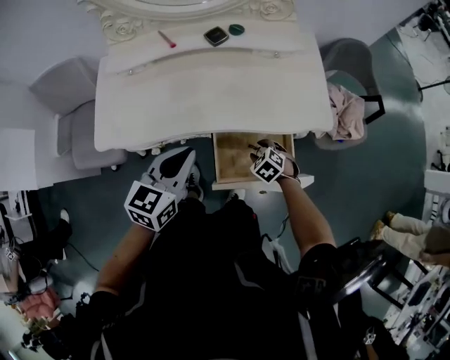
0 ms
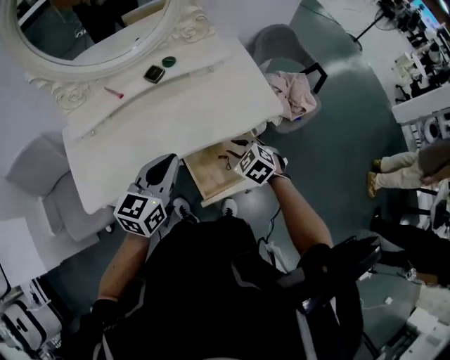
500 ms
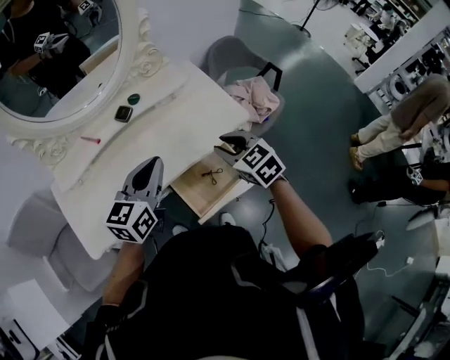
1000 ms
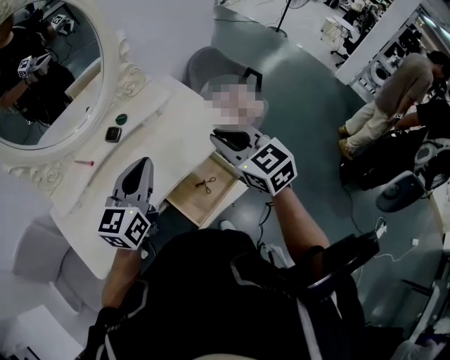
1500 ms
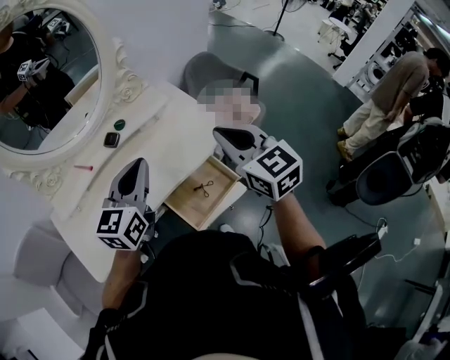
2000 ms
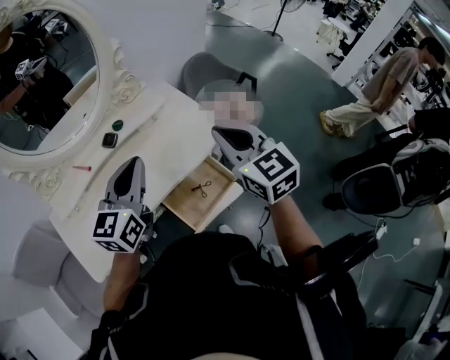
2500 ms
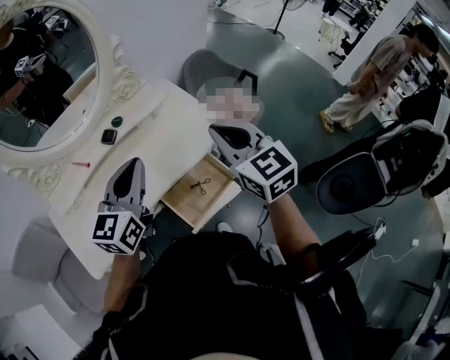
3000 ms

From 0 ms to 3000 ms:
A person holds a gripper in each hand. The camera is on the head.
From 0 ms to 1500 ms: The left gripper is displaced upward by some 15 cm, and turns by some 30 degrees. Meanwhile the right gripper heads upward, covering about 40 cm, tips its fingers upward by about 50 degrees, and closes its fingers.
From 1500 ms to 3000 ms: The right gripper shifts by some 5 cm.

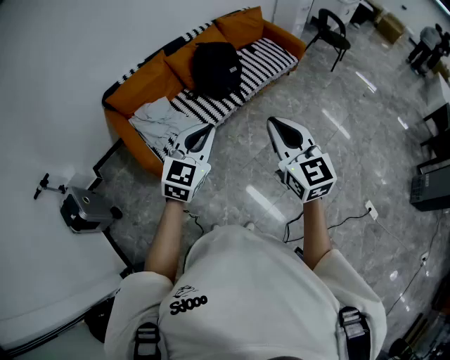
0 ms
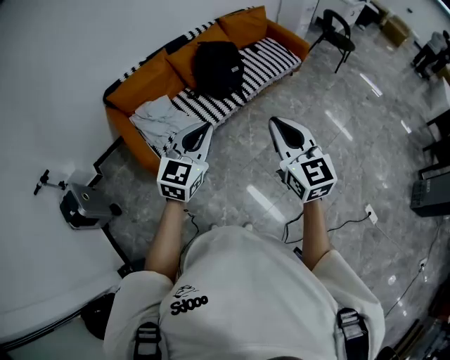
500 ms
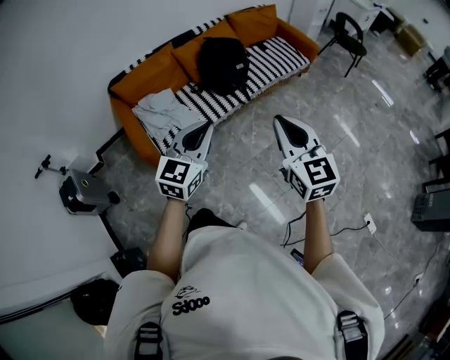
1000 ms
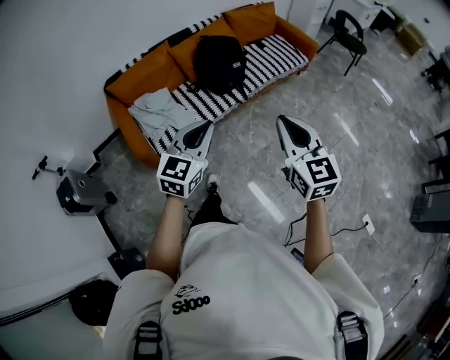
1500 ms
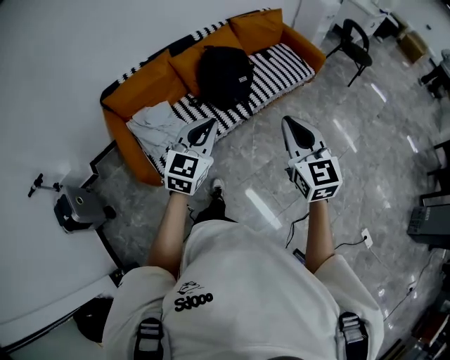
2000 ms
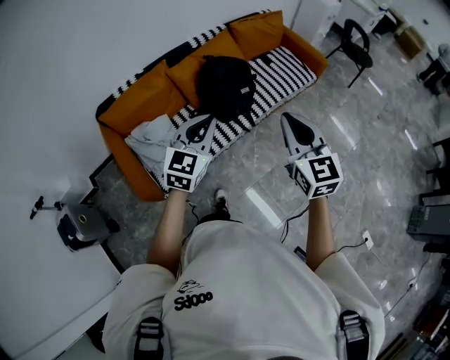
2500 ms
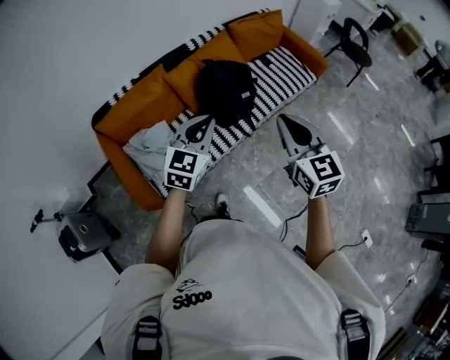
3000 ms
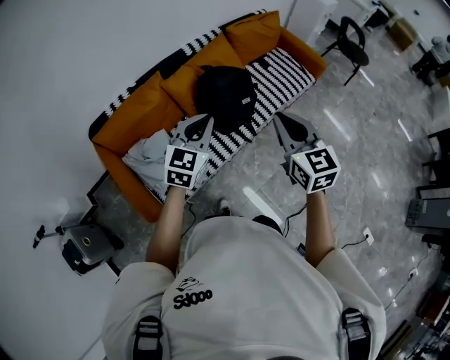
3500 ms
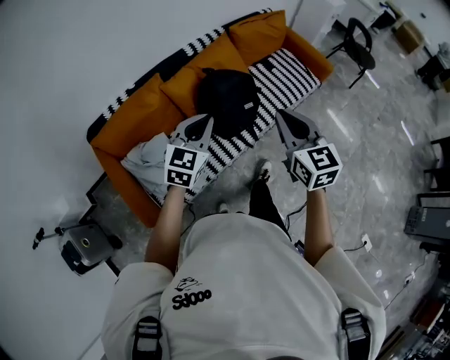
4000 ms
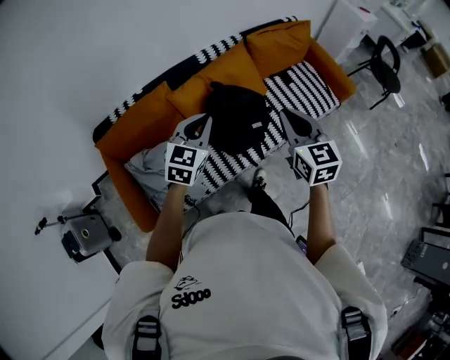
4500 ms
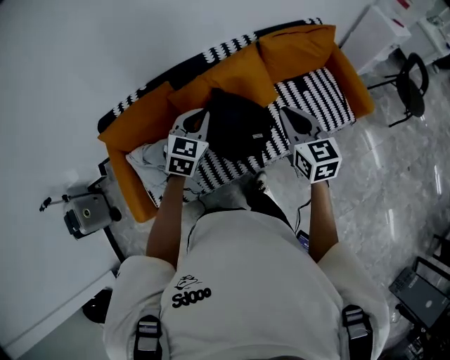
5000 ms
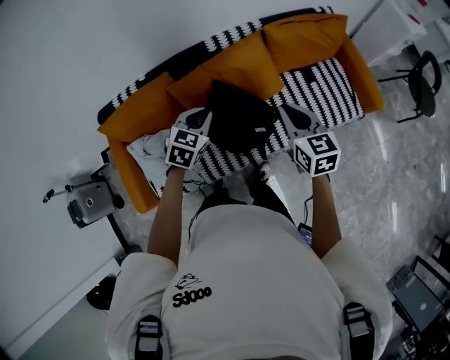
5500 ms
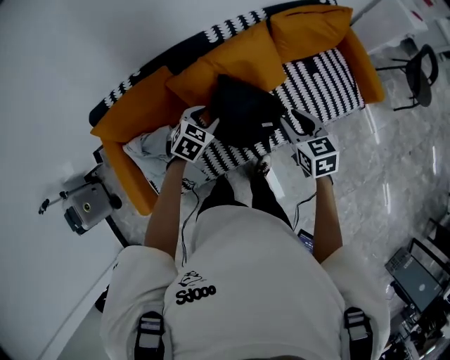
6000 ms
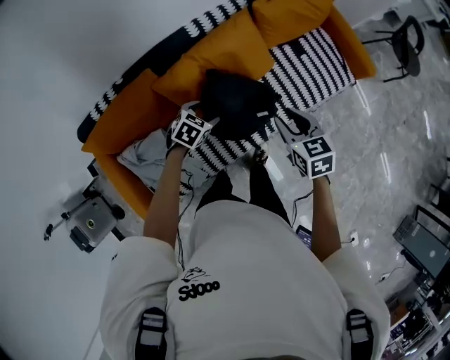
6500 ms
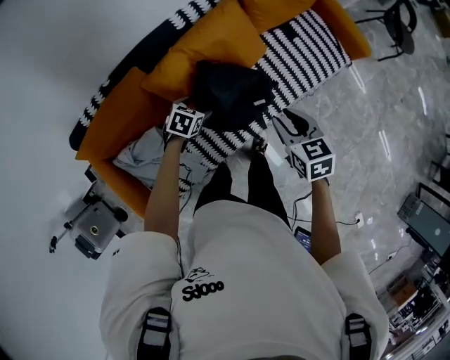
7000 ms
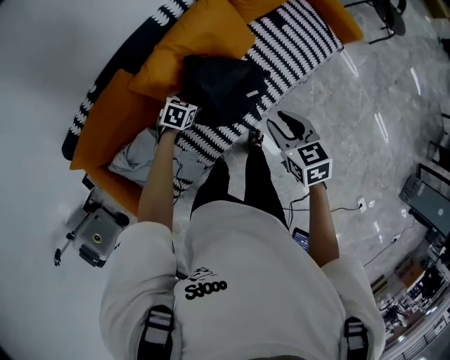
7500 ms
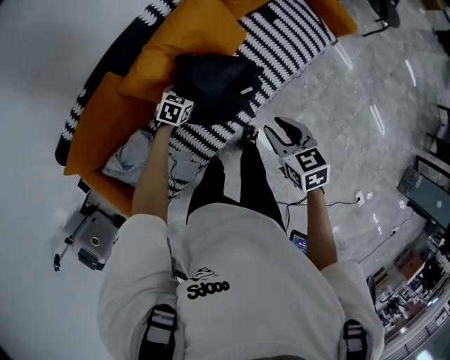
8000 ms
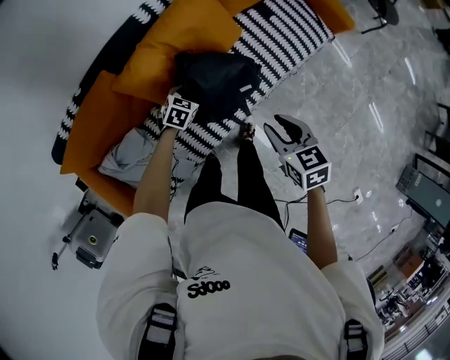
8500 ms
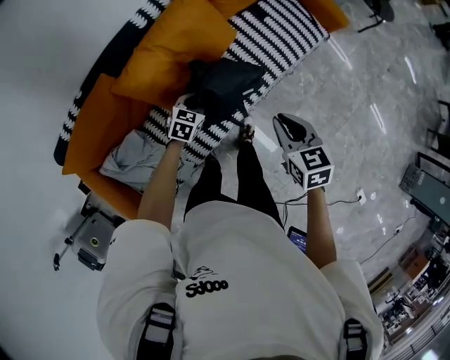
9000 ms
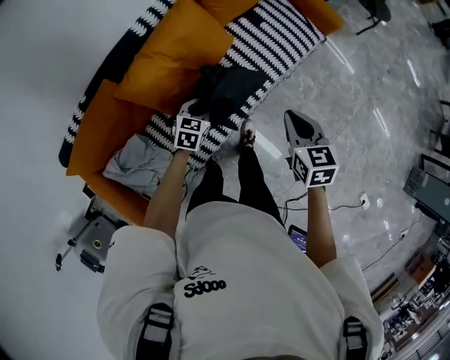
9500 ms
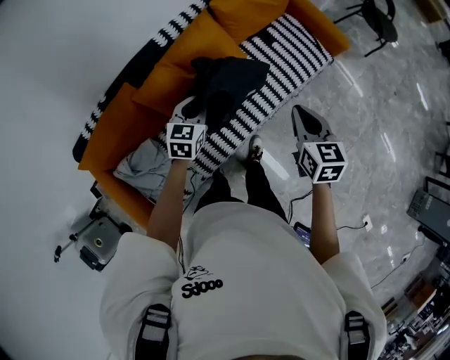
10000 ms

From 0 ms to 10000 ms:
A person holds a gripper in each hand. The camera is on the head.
From 0 ms to 2000 ms: The grippers both shift forward by approximately 20 cm.
From 2000 ms to 4000 ms: The grippers both shift forward by some 35 cm.
From 4000 ms to 6000 ms: The grippers both shift forward and downward by some 40 cm. The left gripper angles its fingers downward, by about 40 degrees, and opens. Meanwhile the right gripper swivels about 30 degrees, and opens.
From 6000 ms to 8000 ms: The right gripper goes roughly 15 cm backward and downward. The left gripper goes roughly 20 cm downward, and opens.
From 8000 ms to 10000 ms: The left gripper goes roughly 25 cm upward, rotates approximately 30 degrees, and closes; the right gripper travels upward and to the right by approximately 15 cm, rotates about 20 degrees, and closes.

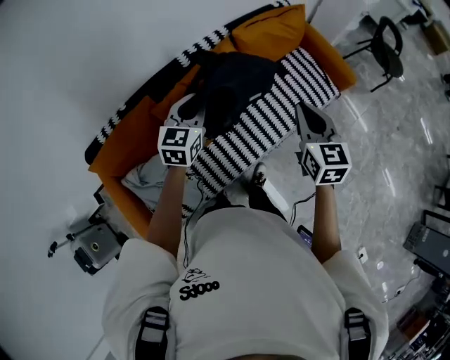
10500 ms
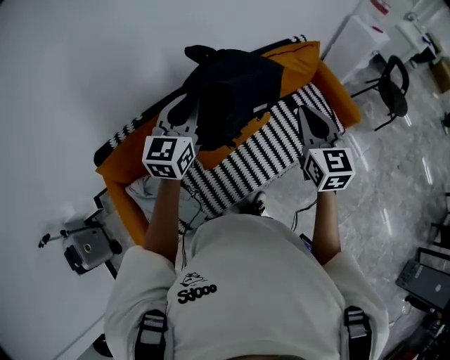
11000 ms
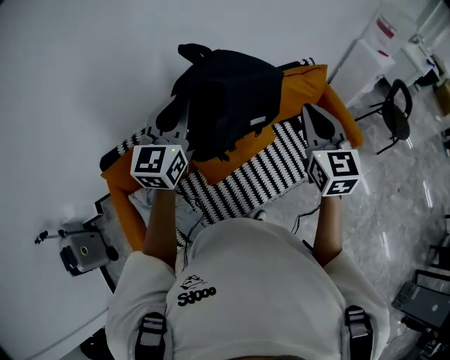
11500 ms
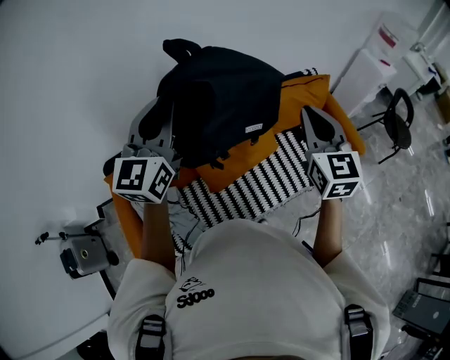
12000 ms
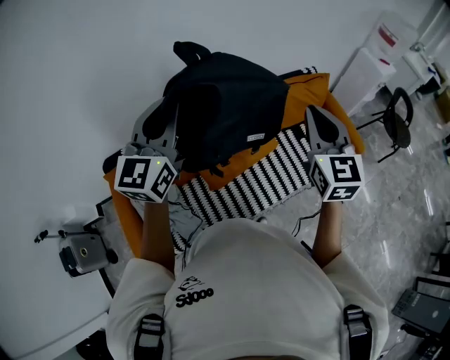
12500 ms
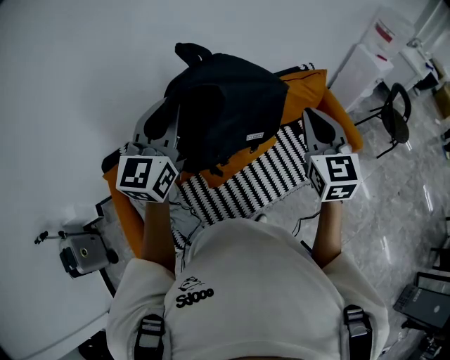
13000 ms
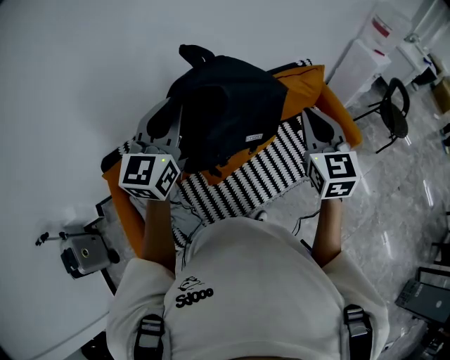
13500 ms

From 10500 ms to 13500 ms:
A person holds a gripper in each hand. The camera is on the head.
From 10500 ms to 12000 ms: The right gripper moves upward and to the left, some 20 cm, and swivels approximately 20 degrees, while the left gripper shifts about 30 cm upward and to the left, and rotates approximately 30 degrees.
From 12000 ms to 13500 ms: The grippers make only small movements.

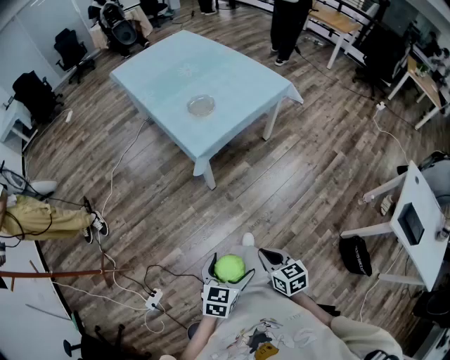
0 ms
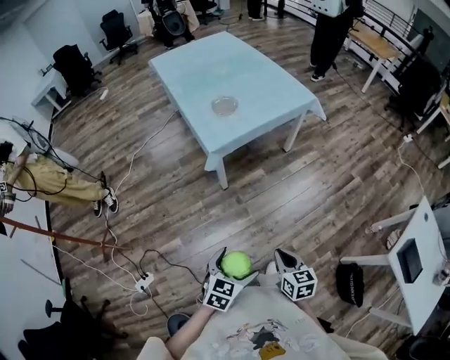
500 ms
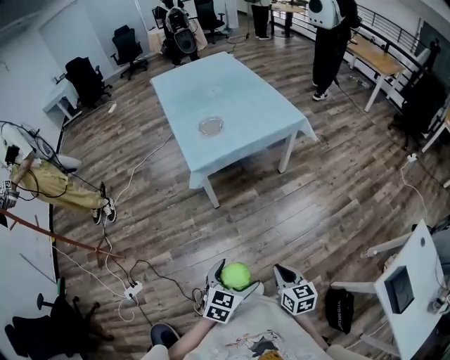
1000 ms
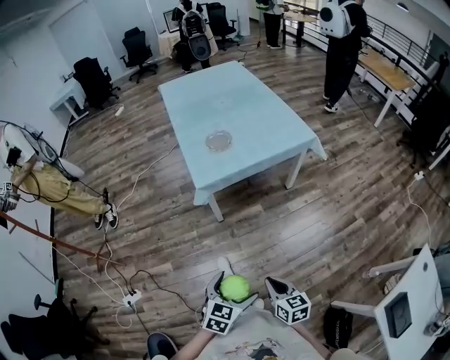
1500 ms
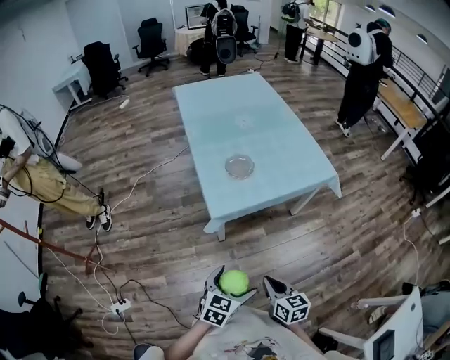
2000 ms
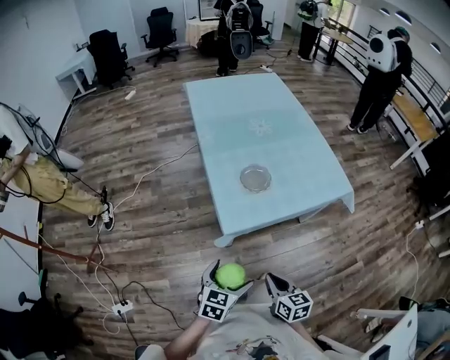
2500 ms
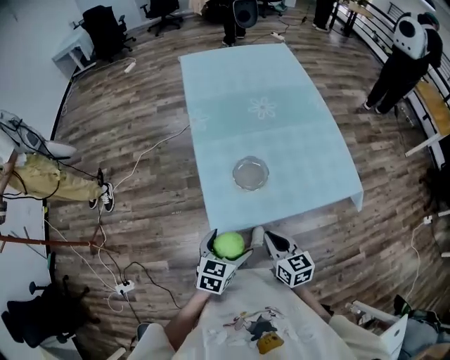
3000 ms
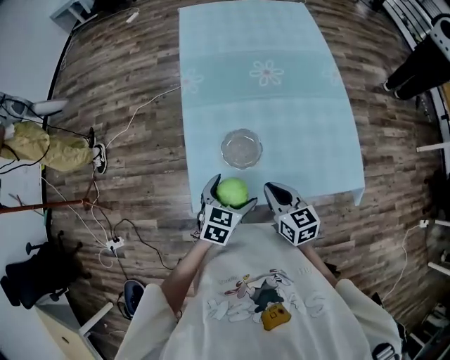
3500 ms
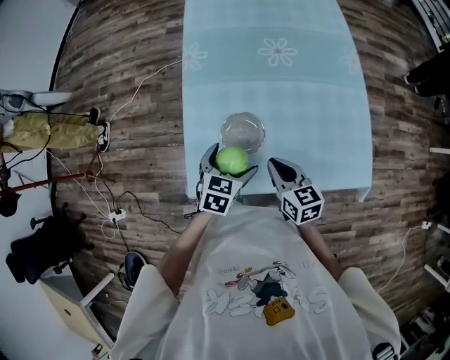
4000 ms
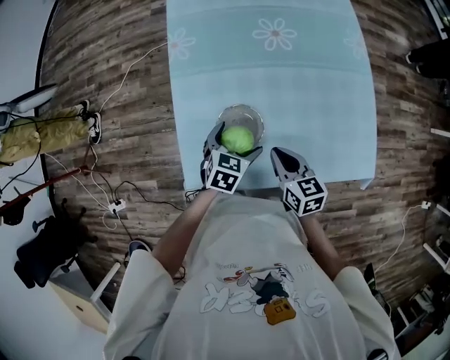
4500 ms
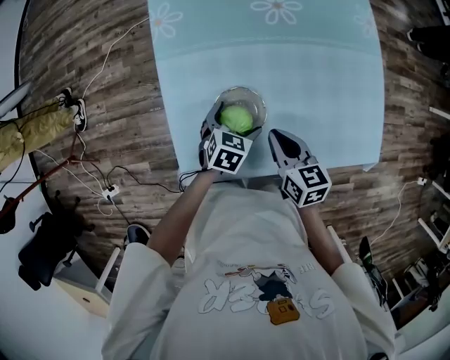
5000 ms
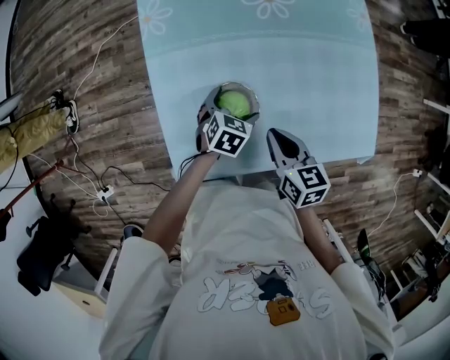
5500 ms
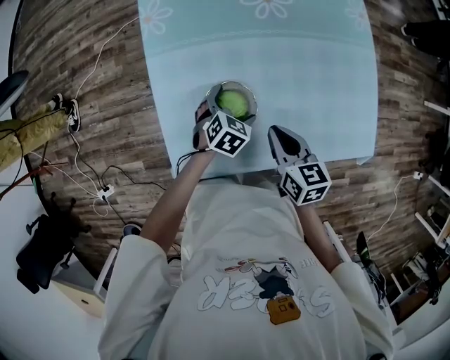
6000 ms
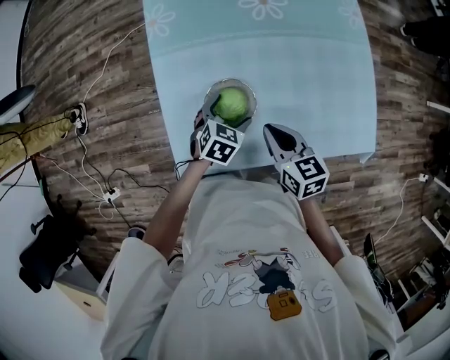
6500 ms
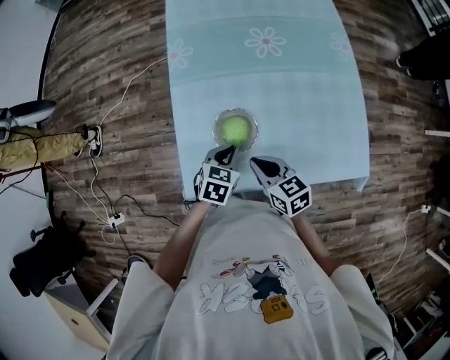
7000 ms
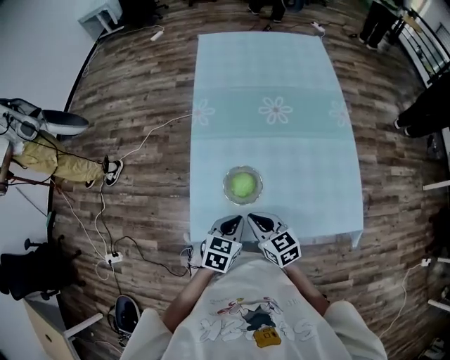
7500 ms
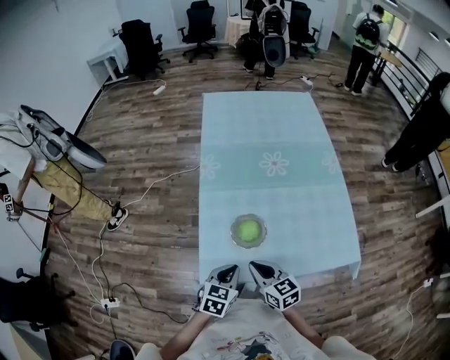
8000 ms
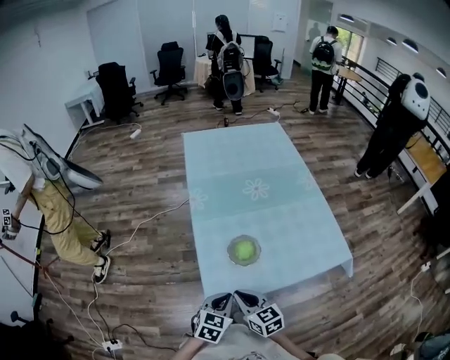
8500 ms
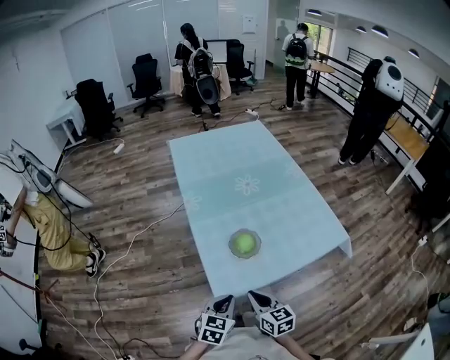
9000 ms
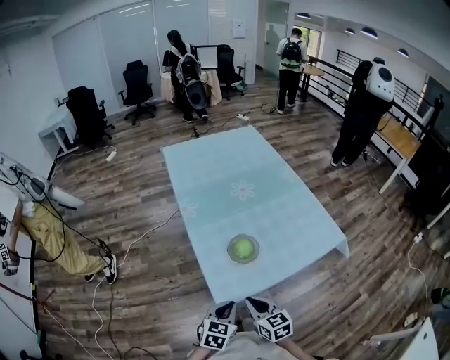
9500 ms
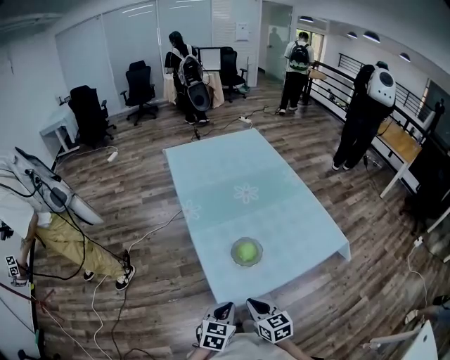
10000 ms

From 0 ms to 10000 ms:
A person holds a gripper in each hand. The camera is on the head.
From 0 ms to 2000 ms: The grippers both shift forward and to the right by about 25 cm.
From 2000 ms to 4000 ms: The two grippers travel together, forward, some 50 cm. The right gripper changes its angle by roughly 20 degrees; the left gripper rotates some 20 degrees.
From 4000 ms to 6000 ms: The left gripper travels downward and forward by roughly 15 cm, and changes its angle by approximately 20 degrees. The right gripper shifts by approximately 5 cm.
From 6000 ms to 8000 ms: The right gripper heads to the left, backward and upward, covering about 15 cm, and swivels roughly 20 degrees, while the left gripper goes approximately 25 cm upward, backward and to the left, rotates approximately 20 degrees, and closes.
From 8000 ms to 10000 ms: The right gripper is displaced backward and to the left by approximately 15 cm, and rotates approximately 30 degrees. Meanwhile the left gripper shifts some 15 cm to the left and backward.
